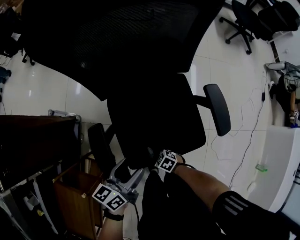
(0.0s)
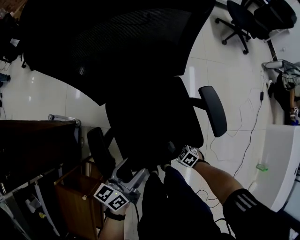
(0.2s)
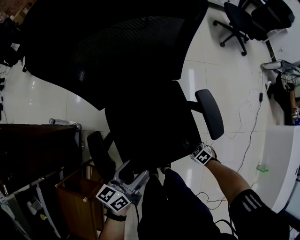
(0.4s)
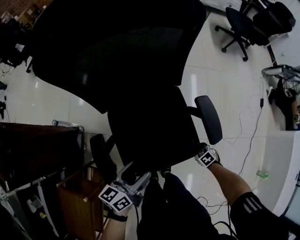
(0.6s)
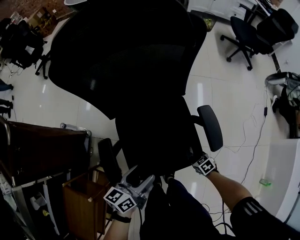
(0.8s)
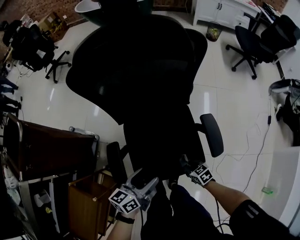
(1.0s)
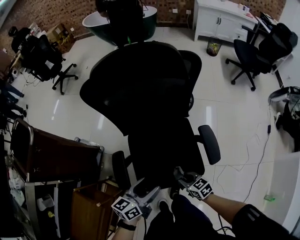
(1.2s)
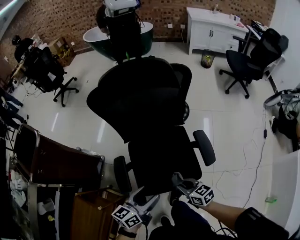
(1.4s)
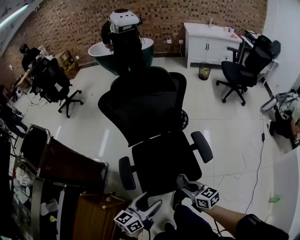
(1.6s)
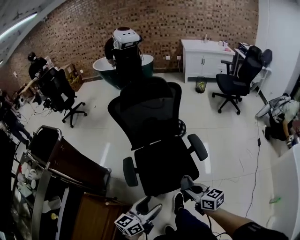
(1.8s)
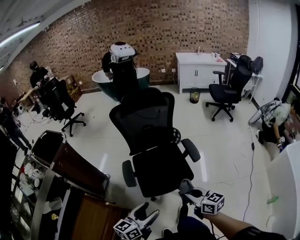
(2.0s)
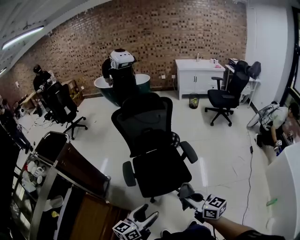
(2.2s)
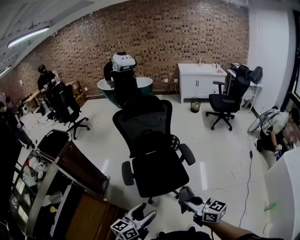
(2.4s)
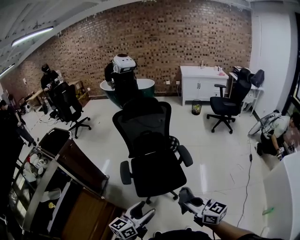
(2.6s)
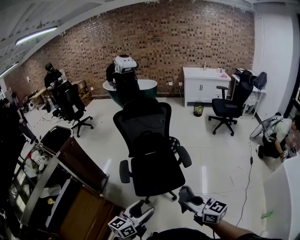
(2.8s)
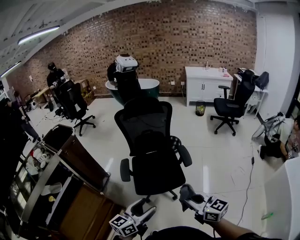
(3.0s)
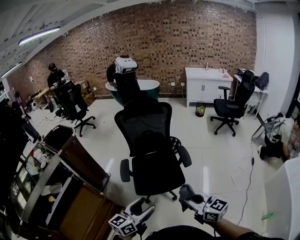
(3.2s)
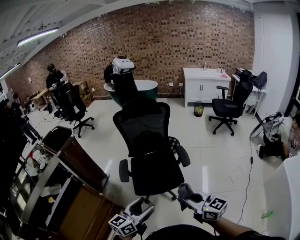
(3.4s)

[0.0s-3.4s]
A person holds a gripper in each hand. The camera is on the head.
0.0s to 1.6s: The right gripper is displaced upward by about 40 cm, and angles its fingers upward, by some 30 degrees. Meanwhile the left gripper is displaced upward by roughly 20 cm.
1.6s to 3.4s: The grippers both shift backward and upward by some 35 cm. The right gripper rotates about 20 degrees.

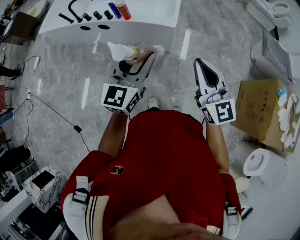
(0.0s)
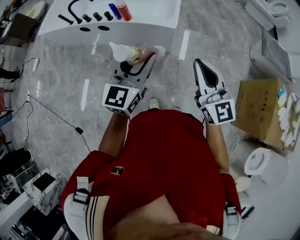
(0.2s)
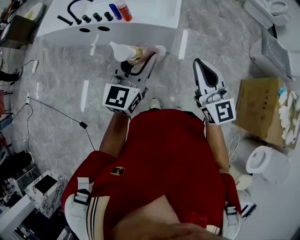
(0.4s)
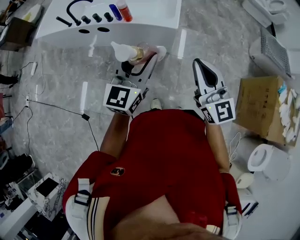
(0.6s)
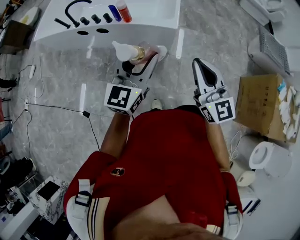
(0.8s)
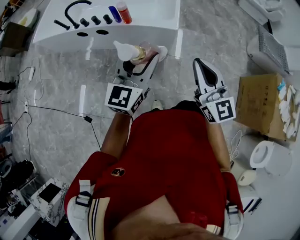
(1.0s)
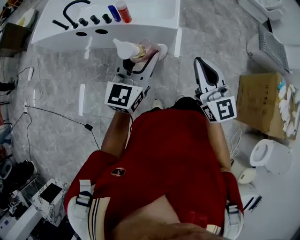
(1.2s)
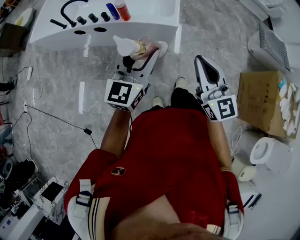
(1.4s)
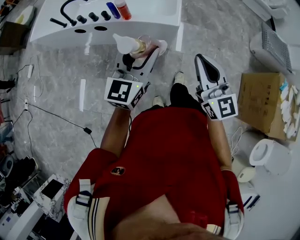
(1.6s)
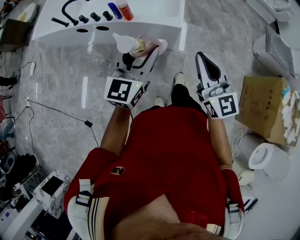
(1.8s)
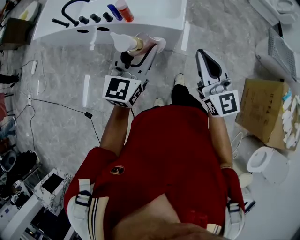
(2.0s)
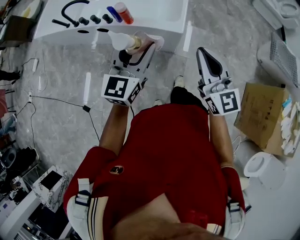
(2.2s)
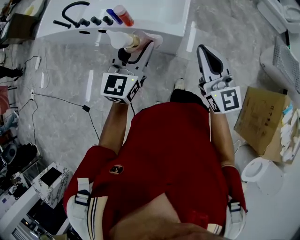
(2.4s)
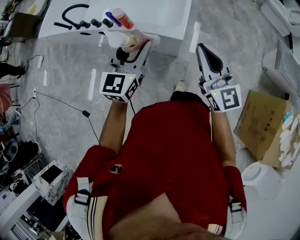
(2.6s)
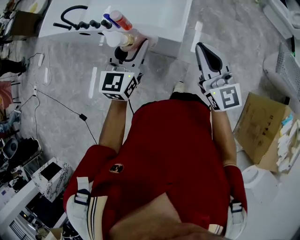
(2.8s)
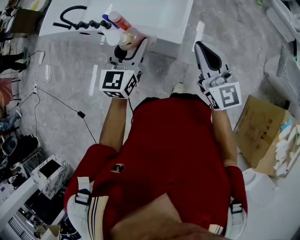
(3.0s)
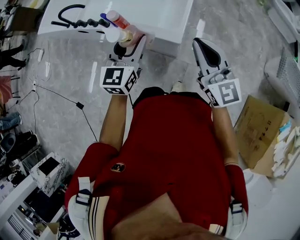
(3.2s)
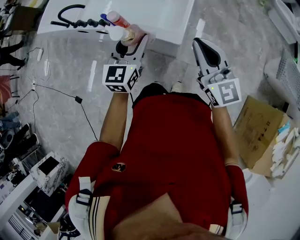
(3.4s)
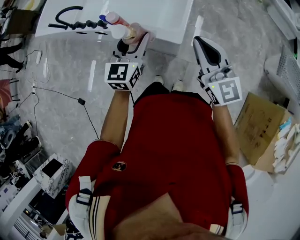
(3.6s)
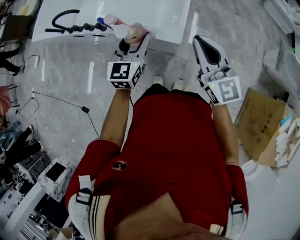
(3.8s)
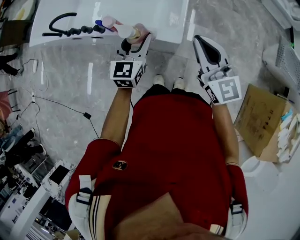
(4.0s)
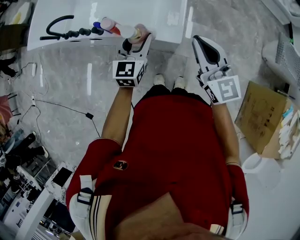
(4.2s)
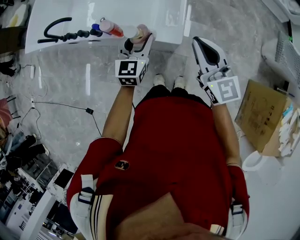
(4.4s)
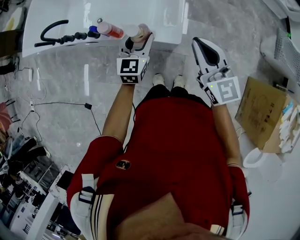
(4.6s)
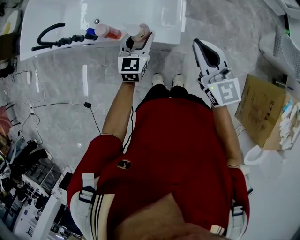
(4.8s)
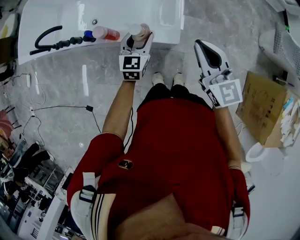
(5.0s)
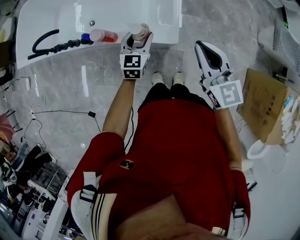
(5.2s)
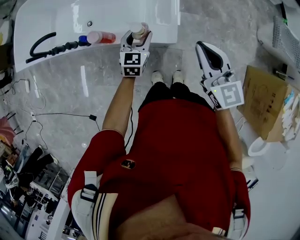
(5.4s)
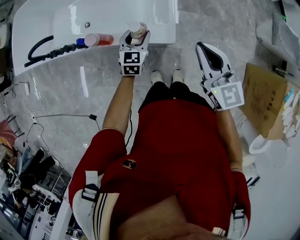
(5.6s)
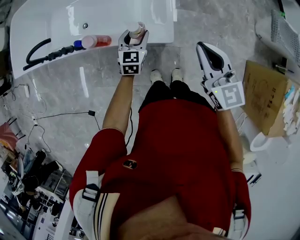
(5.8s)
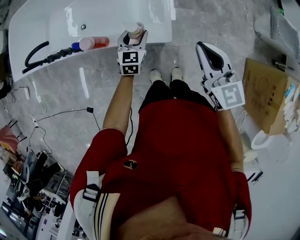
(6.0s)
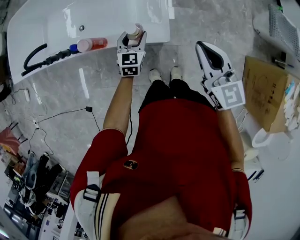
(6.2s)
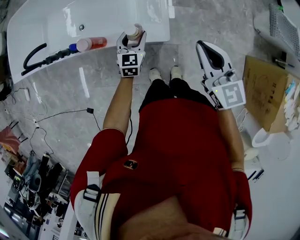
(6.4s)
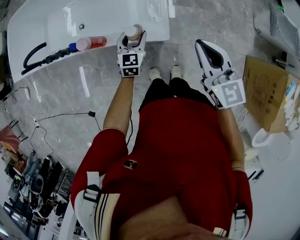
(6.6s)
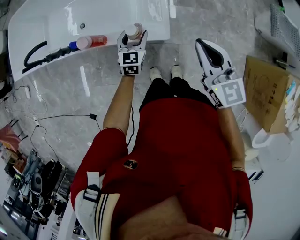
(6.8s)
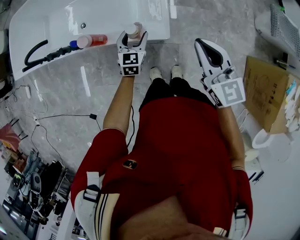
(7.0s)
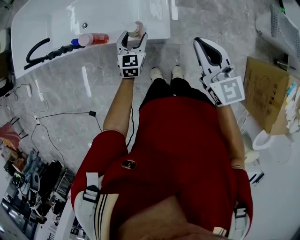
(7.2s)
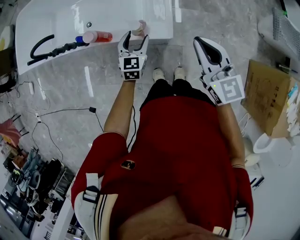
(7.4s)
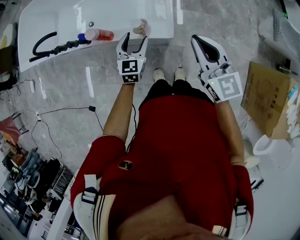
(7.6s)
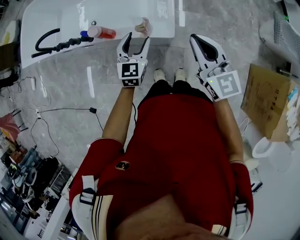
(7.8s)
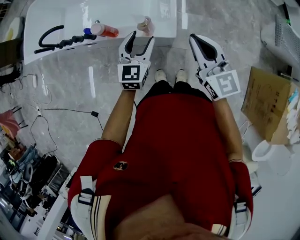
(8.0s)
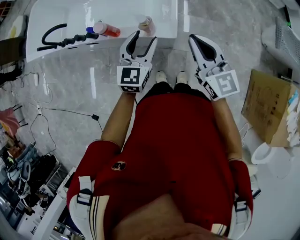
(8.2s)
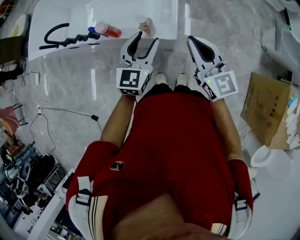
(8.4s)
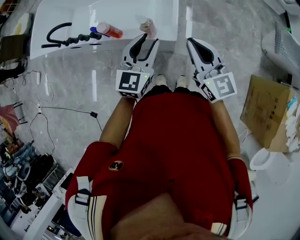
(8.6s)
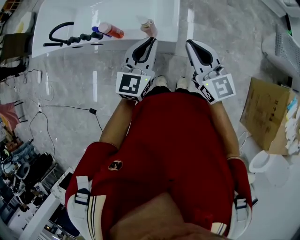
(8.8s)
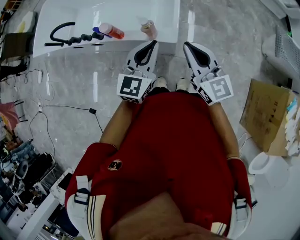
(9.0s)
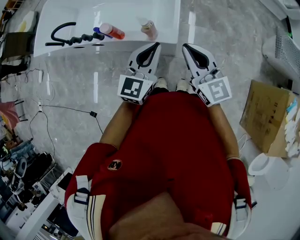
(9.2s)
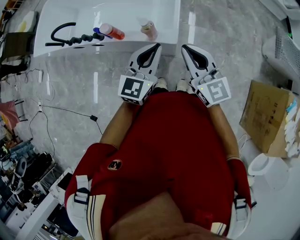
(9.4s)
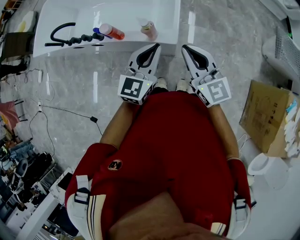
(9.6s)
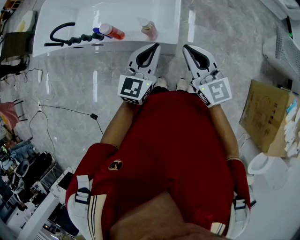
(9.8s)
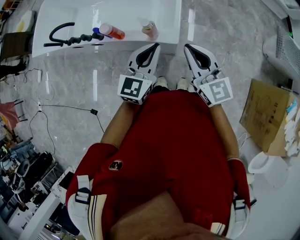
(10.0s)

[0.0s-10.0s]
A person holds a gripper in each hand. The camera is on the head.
0.0s to 1.4s: The left gripper shifts roughly 10 cm to the left and forward. Meanwhile the right gripper shifts roughly 5 cm to the left.
1.4s to 2.8s: The right gripper heads forward and to the right, covering roughly 25 cm. The left gripper goes approximately 20 cm forward.
2.8s to 4.2s: The left gripper shifts some 15 cm forward and downward; the right gripper shifts about 10 cm forward.
4.2s to 5.8s: The left gripper travels downward and forward by about 20 cm. Meanwhile the right gripper shifts roughly 5 cm downward.
5.8s to 7.2s: The grippers make only small movements.
7.2s to 8.6s: The left gripper shifts some 25 cm upward and backward, and closes its fingers. Meanwhile the right gripper goes roughly 5 cm backward.
8.6s to 10.0s: The left gripper closes its fingers.

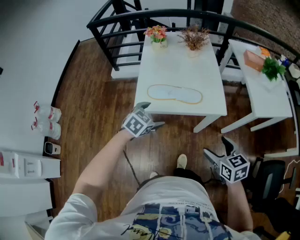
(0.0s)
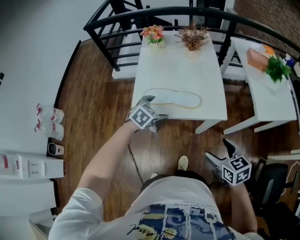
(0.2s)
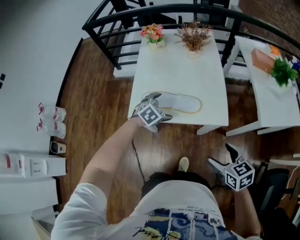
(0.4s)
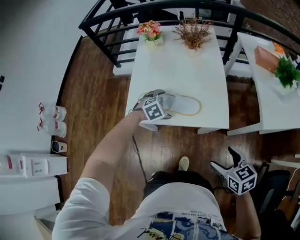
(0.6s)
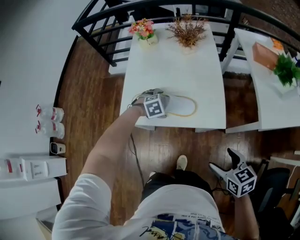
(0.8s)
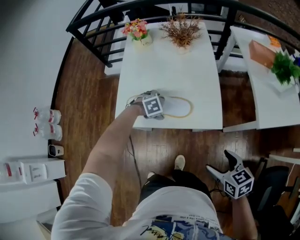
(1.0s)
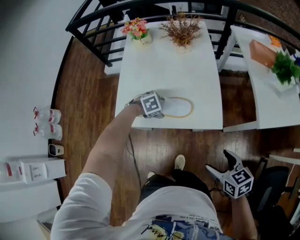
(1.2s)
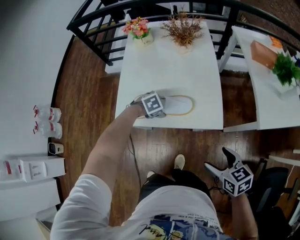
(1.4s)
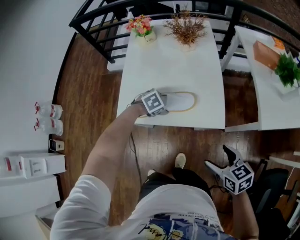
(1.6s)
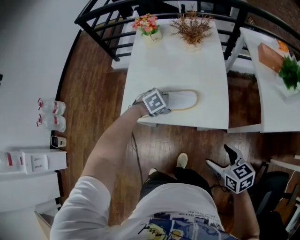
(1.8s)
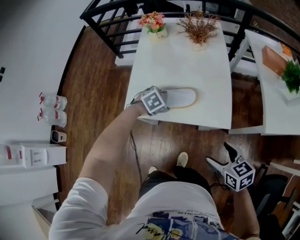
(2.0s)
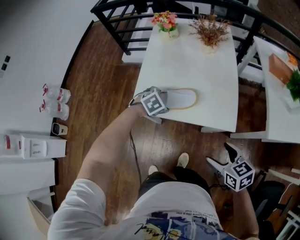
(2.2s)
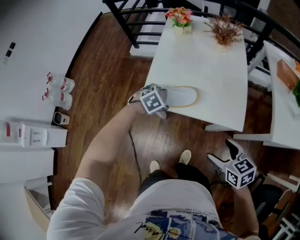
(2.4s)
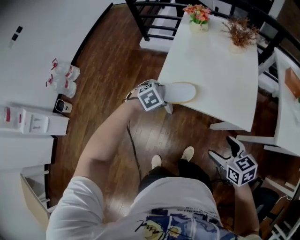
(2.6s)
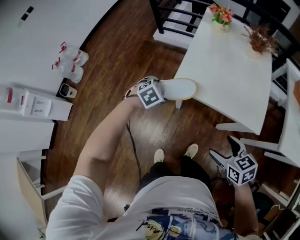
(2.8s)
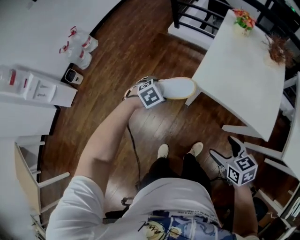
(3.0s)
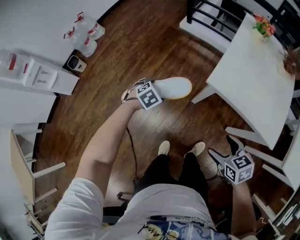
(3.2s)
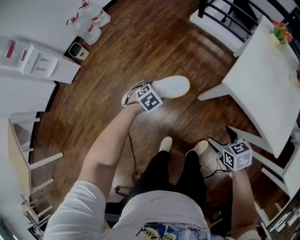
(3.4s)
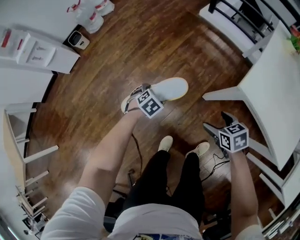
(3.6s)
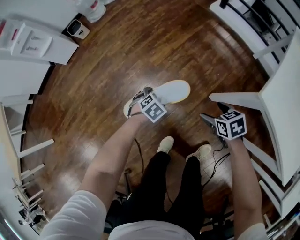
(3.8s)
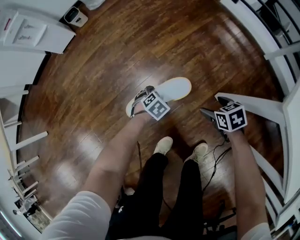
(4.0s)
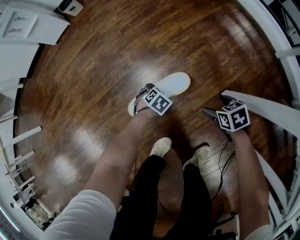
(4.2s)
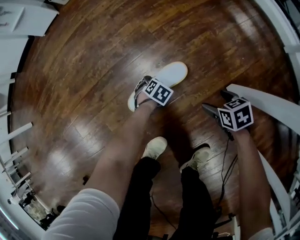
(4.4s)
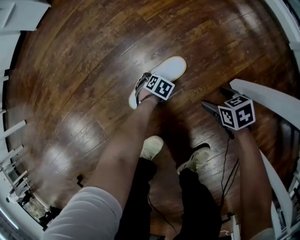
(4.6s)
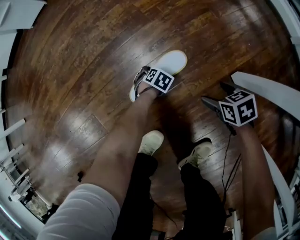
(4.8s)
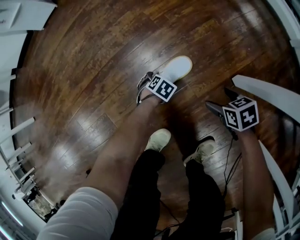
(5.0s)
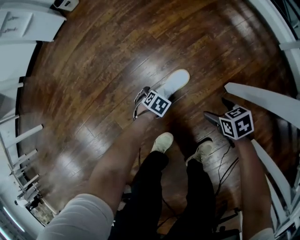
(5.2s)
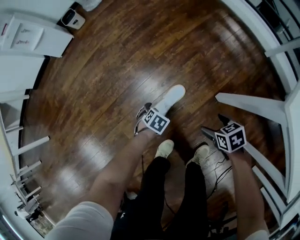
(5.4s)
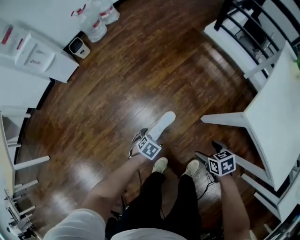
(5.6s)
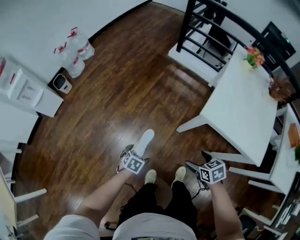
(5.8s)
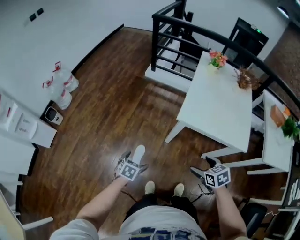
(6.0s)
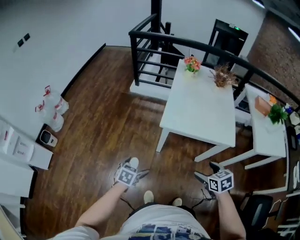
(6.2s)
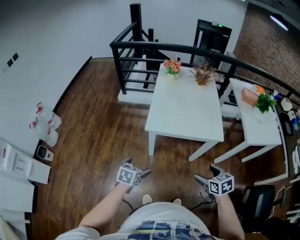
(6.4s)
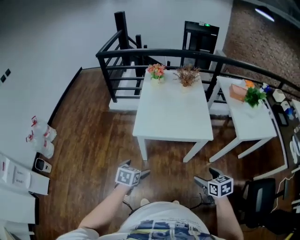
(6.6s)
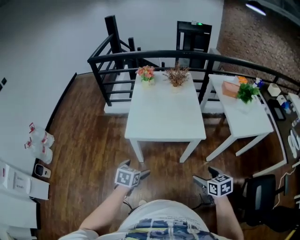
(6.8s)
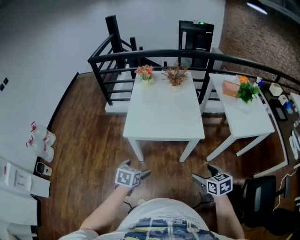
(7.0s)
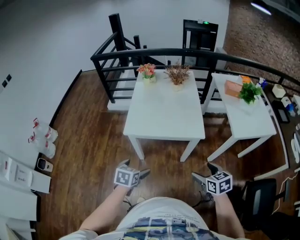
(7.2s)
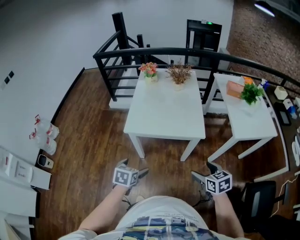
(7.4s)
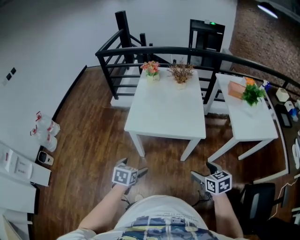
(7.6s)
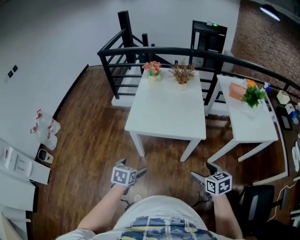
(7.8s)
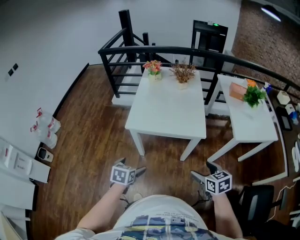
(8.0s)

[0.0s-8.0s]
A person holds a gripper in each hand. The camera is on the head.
0.0s to 1.6s: The left gripper changes place by roughly 30 cm, and turns by some 30 degrees; the right gripper ends up approximately 20 cm from where it was.
1.6s to 3.2s: The right gripper moves about 40 cm, and turns by about 30 degrees; the left gripper moves some 5 cm upward and comes back, and swivels some 40 degrees.
3.2s to 4.8s: The two grippers go about 80 cm downward. The right gripper swivels approximately 30 degrees, while the left gripper rolls counterclockwise, seen from behind, by approximately 50 degrees.
4.8s to 6.4s: The grippers both shift upward by roughly 1 m. The right gripper turns by about 70 degrees; the left gripper tips its fingers upward by roughly 40 degrees.
6.4s to 8.0s: Both grippers travel together to the right, some 15 cm.

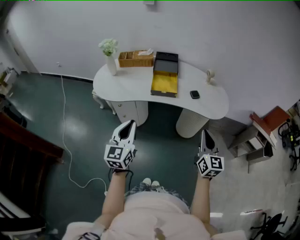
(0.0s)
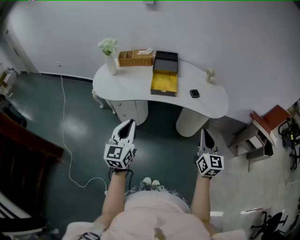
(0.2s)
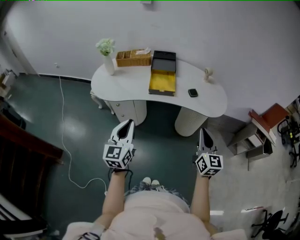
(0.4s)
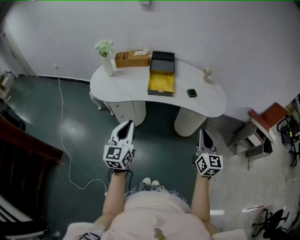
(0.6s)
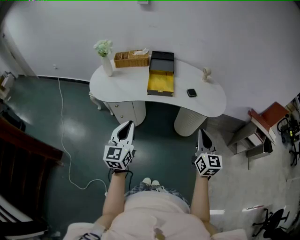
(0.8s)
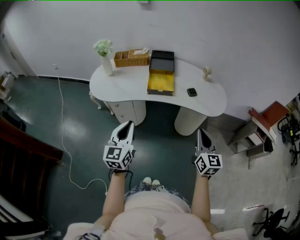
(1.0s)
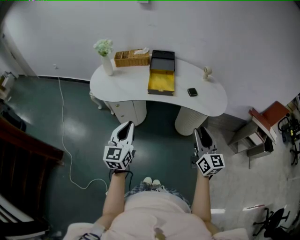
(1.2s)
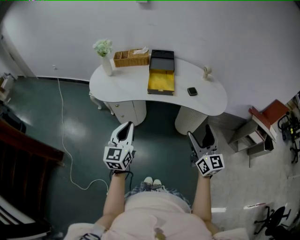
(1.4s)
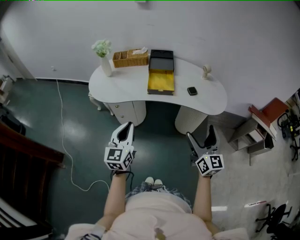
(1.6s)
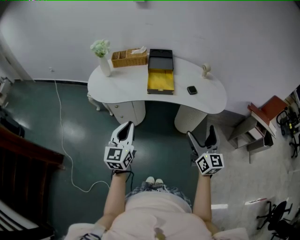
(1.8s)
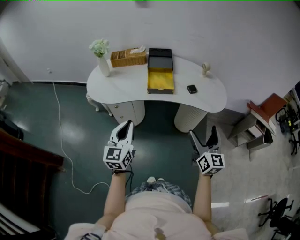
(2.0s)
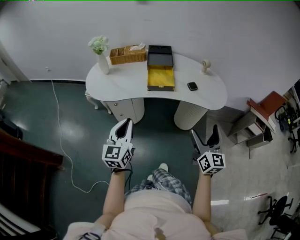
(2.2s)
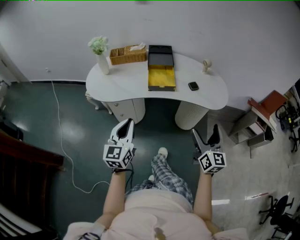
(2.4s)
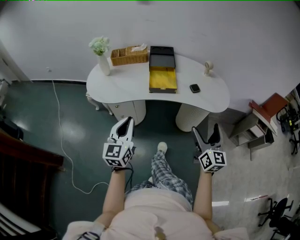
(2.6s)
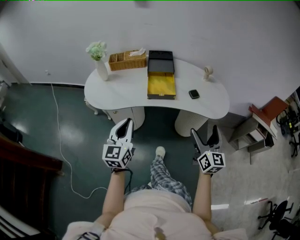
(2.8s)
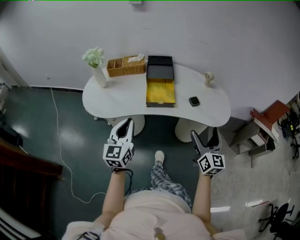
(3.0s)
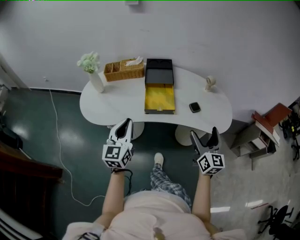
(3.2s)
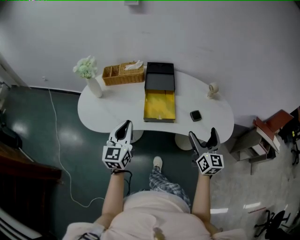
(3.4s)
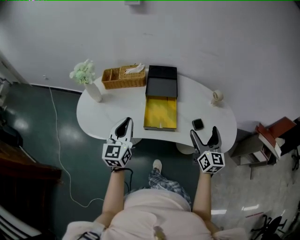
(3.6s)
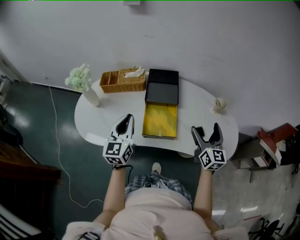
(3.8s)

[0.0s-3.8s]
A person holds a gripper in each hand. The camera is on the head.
0.0s to 1.2s: The grippers stay close to where they were, moving slightly.
1.2s to 2.6s: The right gripper opens. The left gripper ends up roughly 5 cm from where it was.
2.6s to 3.8s: The grippers both shift forward by some 35 cm.
